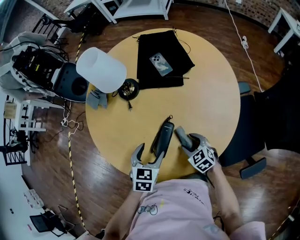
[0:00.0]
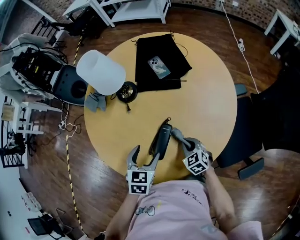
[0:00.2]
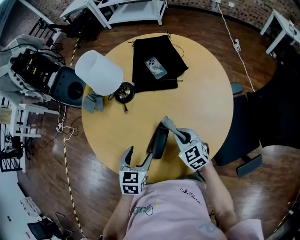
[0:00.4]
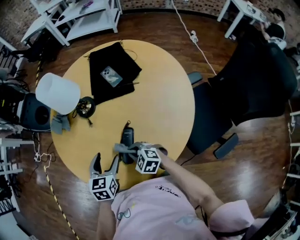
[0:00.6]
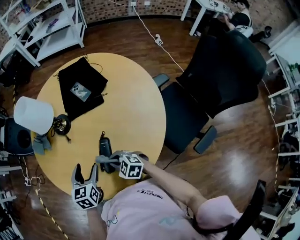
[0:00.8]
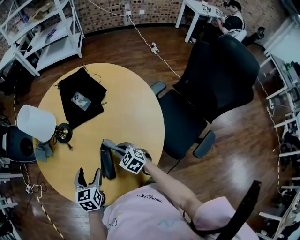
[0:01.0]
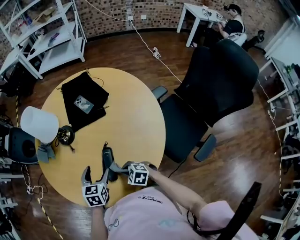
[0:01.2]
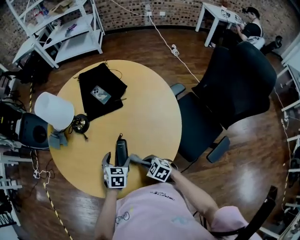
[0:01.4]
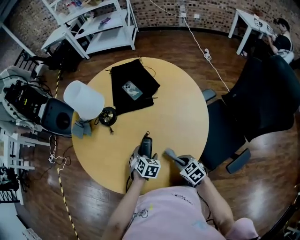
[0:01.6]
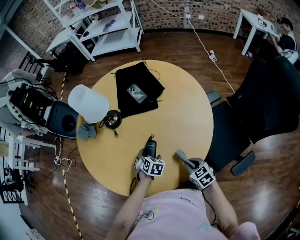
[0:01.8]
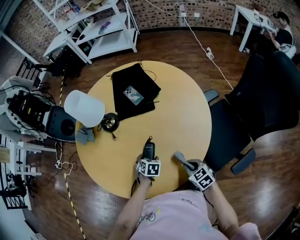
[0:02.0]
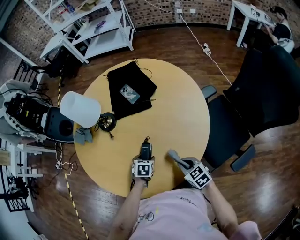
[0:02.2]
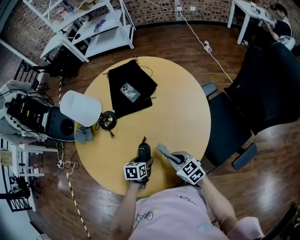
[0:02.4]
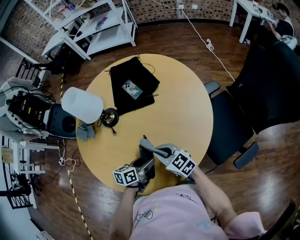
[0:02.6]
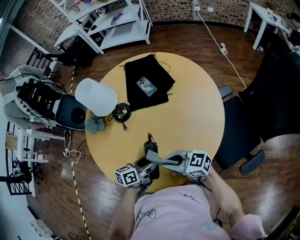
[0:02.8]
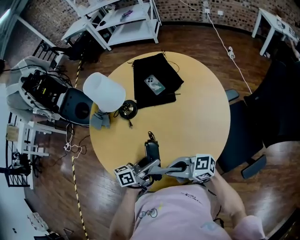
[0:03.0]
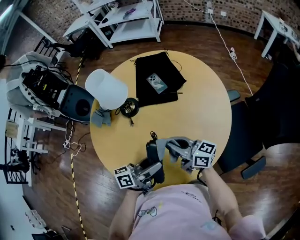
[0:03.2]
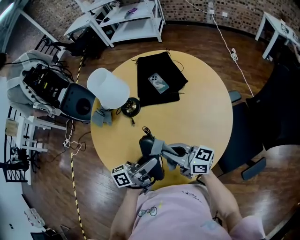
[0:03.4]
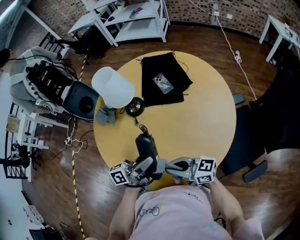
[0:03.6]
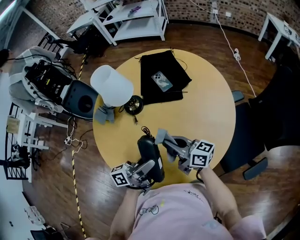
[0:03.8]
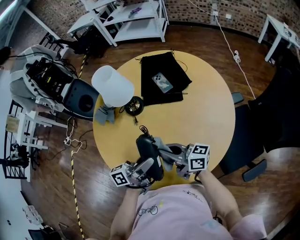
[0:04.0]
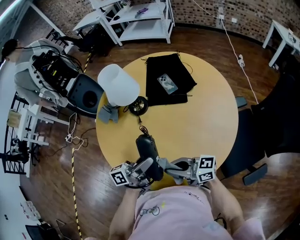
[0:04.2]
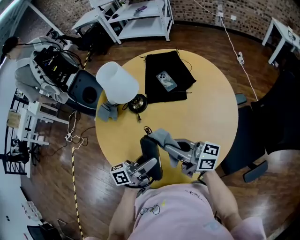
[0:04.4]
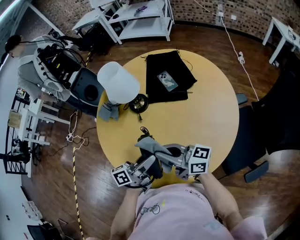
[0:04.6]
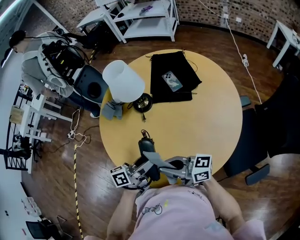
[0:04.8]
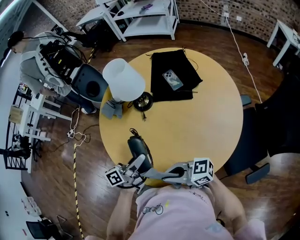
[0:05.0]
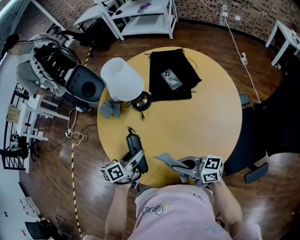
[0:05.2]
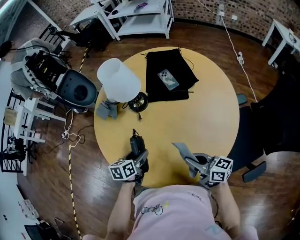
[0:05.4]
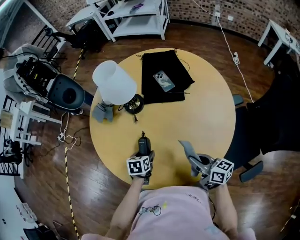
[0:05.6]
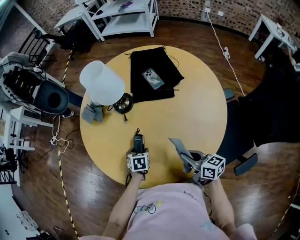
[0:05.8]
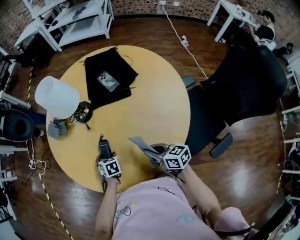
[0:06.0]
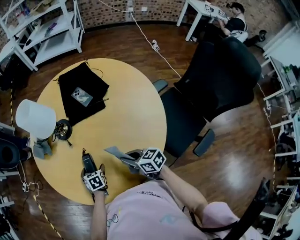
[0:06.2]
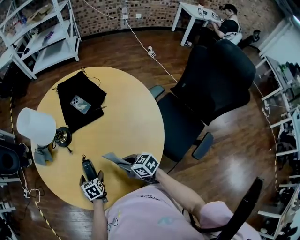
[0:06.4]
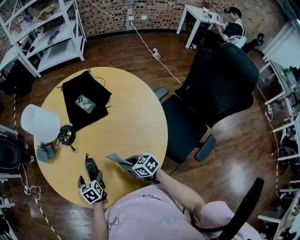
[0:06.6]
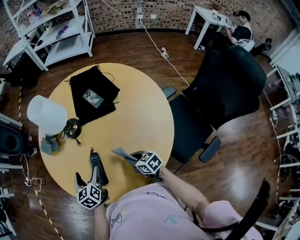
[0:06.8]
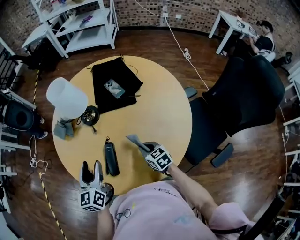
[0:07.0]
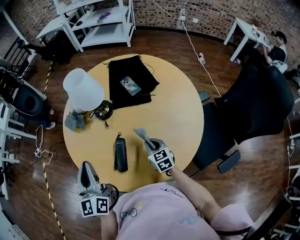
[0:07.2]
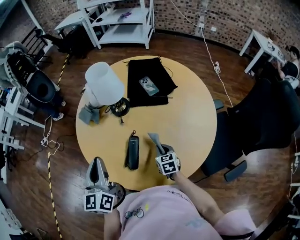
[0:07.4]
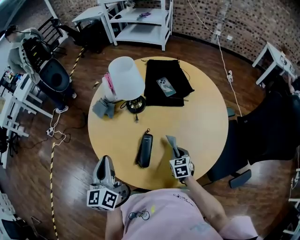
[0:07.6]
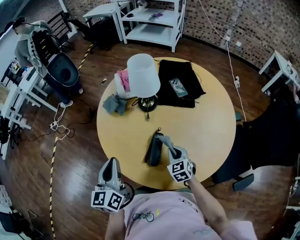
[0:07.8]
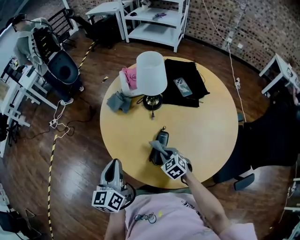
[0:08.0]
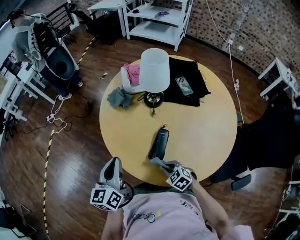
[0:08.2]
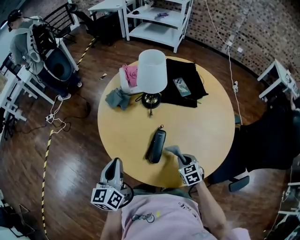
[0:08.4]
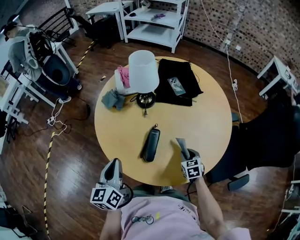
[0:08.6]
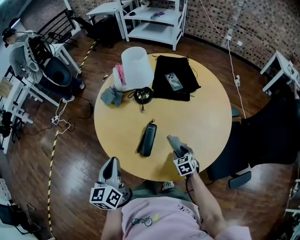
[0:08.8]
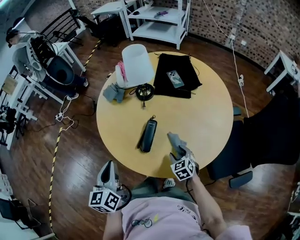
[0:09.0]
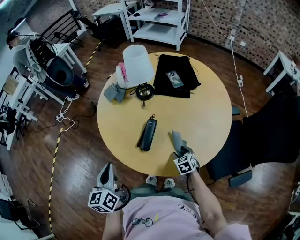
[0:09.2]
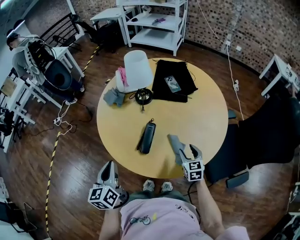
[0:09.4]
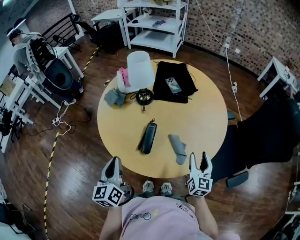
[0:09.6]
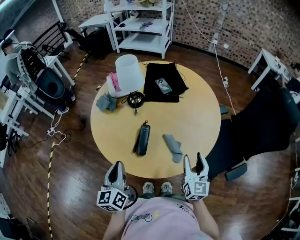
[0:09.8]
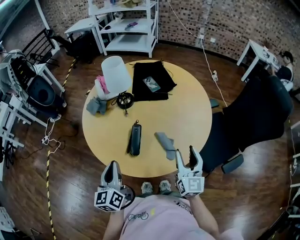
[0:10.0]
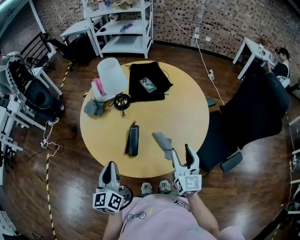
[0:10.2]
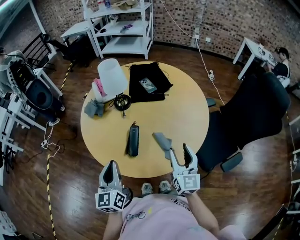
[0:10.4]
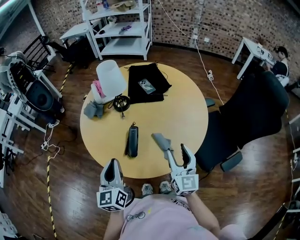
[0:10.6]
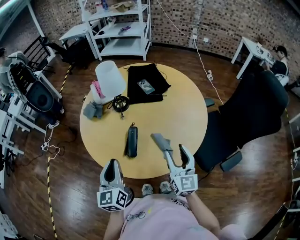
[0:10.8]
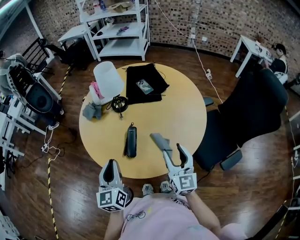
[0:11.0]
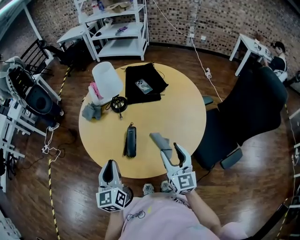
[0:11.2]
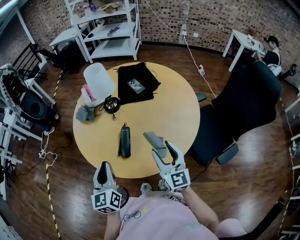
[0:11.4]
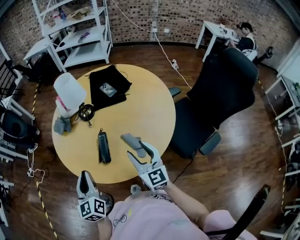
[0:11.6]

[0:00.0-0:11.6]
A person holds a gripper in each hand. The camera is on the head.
0:00.0 to 0:01.4: The right gripper goes left and right, some 15 cm each way, reversing 2 times, and closes up.
0:01.4 to 0:02.8: The right gripper goes approximately 15 cm upward, and angles its fingers upward, by some 40 degrees; the left gripper goes downward and returns, roughly 10 cm each way, and changes its angle by approximately 60 degrees.
0:02.8 to 0:04.4: The left gripper moves approximately 15 cm, and swivels about 30 degrees, while the right gripper changes place by about 10 cm, and rotates some 30 degrees.
0:04.4 to 0:05.8: The right gripper moves downward, some 15 cm, and angles its fingers downward, by some 30 degrees. The left gripper moves downward, roughly 25 cm, and tilts its fingers approximately 70 degrees downward.
0:05.8 to 0:07.2: The left gripper heads upward, covering about 35 cm, points its fingers about 60 degrees further upward, and closes up. The right gripper goes approximately 10 cm forward, and swivels about 40 degrees.
0:07.2 to 0:08.8: The left gripper heads backward, to the left and downward, covering approximately 15 cm; the right gripper shifts approximately 10 cm backward and downward, reaches roughly 20 cm to the left, then returns, swivels approximately 20 degrees, and opens its fingers.
0:08.8 to 0:10.2: The left gripper ends up roughly 5 cm from where it was. Meanwhile the right gripper heads upward, covering approximately 25 cm, and tilts its fingers about 50 degrees upward.
0:10.2 to 0:11.6: The grippers move only a little.

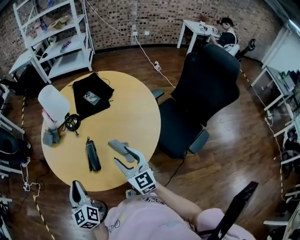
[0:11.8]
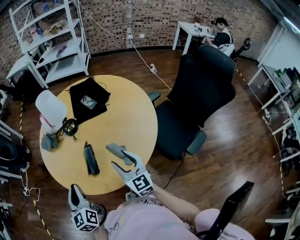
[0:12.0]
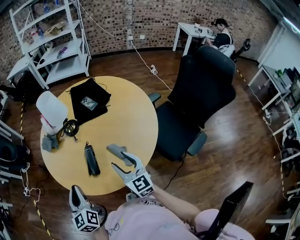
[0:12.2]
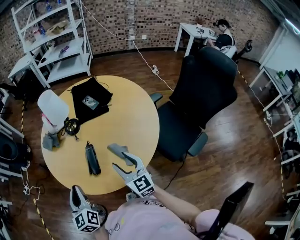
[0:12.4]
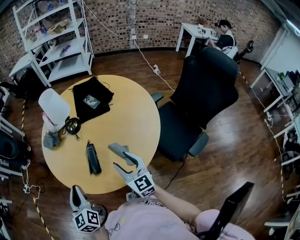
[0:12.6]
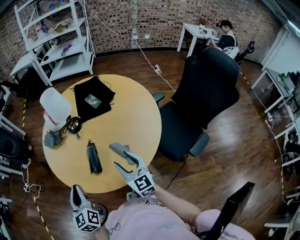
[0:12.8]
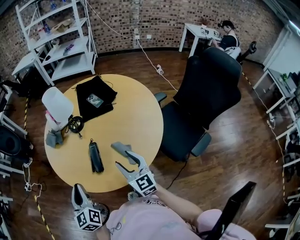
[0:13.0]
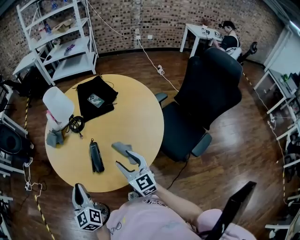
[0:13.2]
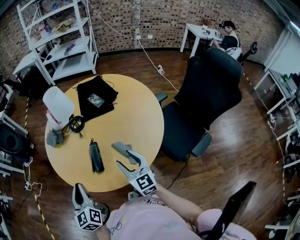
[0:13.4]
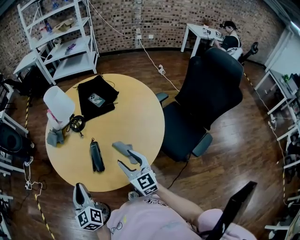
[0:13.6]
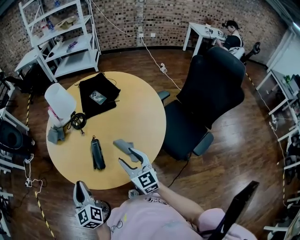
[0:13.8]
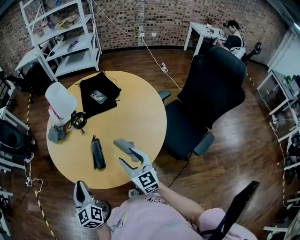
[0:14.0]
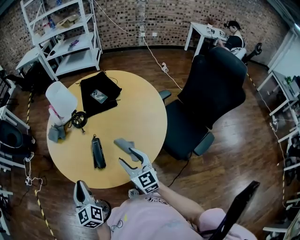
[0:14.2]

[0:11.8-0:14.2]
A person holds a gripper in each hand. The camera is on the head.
0:11.8 to 0:13.0: There are only small adjustments of the grippers.
0:13.0 to 0:14.2: The two grippers keep their place.

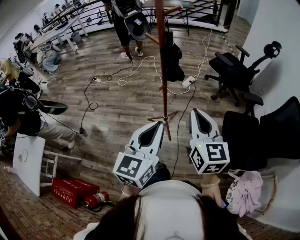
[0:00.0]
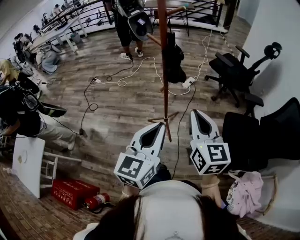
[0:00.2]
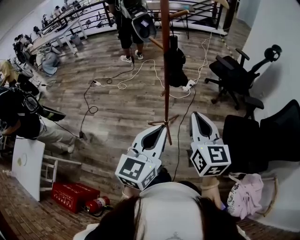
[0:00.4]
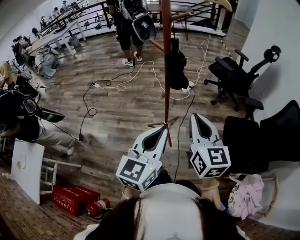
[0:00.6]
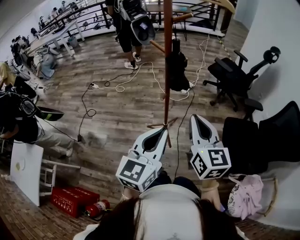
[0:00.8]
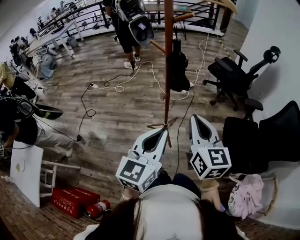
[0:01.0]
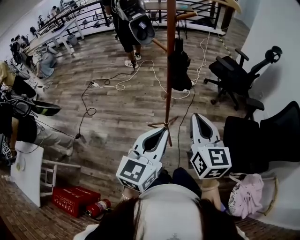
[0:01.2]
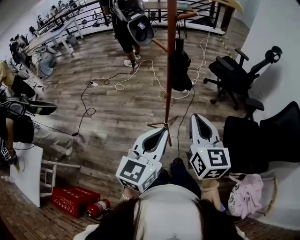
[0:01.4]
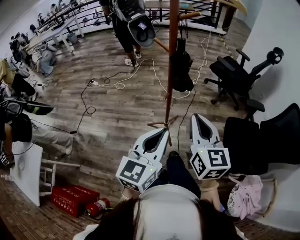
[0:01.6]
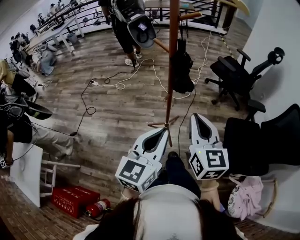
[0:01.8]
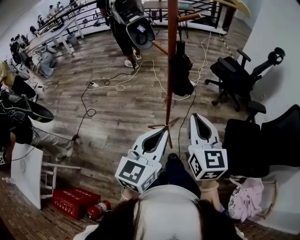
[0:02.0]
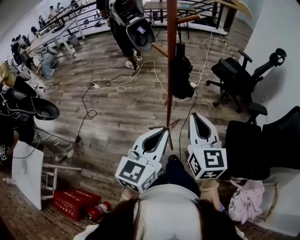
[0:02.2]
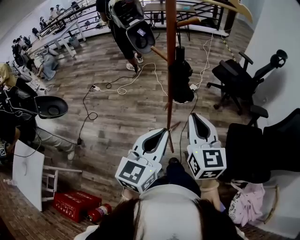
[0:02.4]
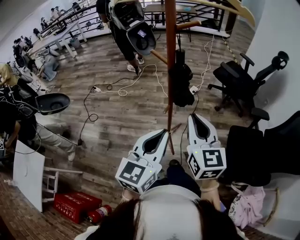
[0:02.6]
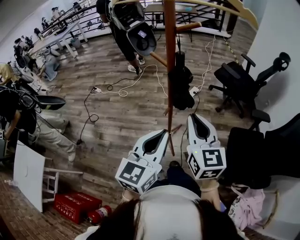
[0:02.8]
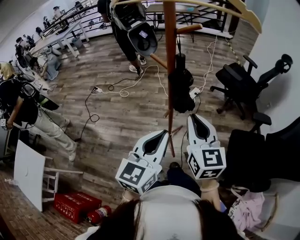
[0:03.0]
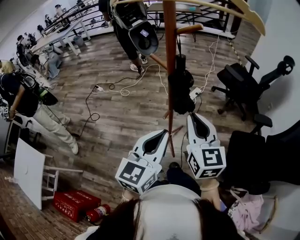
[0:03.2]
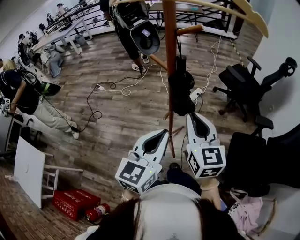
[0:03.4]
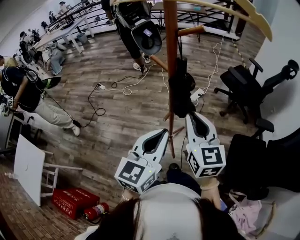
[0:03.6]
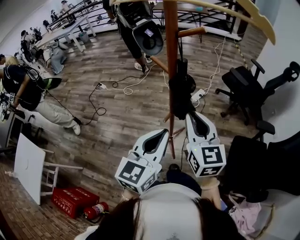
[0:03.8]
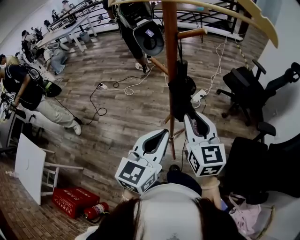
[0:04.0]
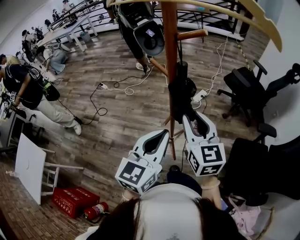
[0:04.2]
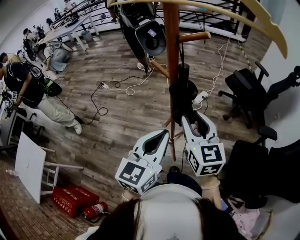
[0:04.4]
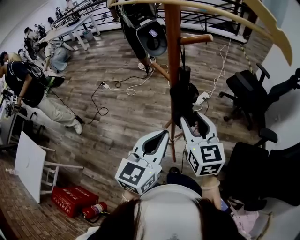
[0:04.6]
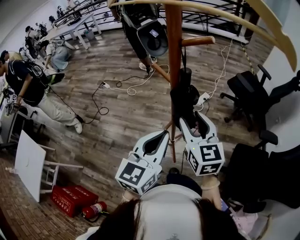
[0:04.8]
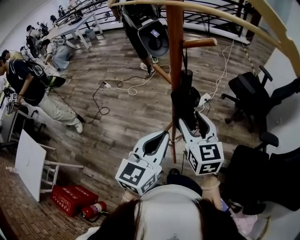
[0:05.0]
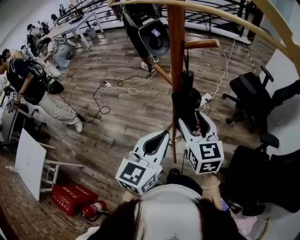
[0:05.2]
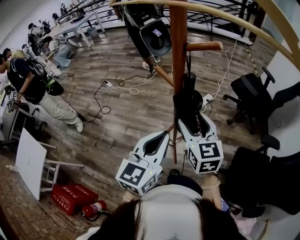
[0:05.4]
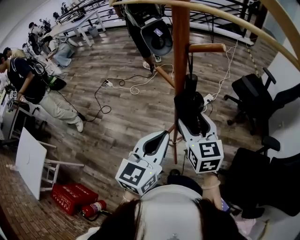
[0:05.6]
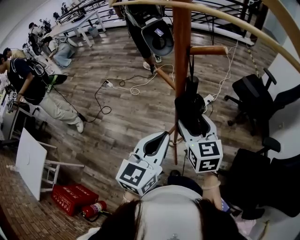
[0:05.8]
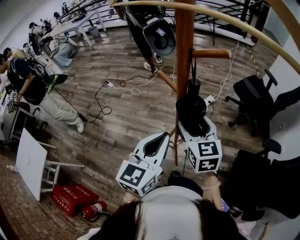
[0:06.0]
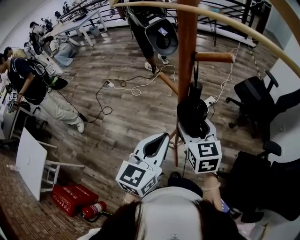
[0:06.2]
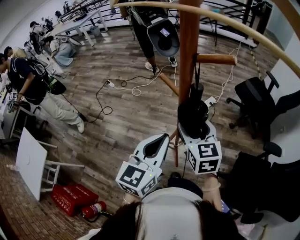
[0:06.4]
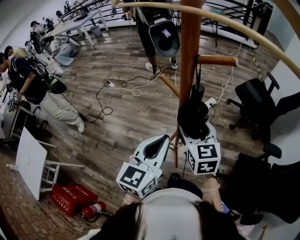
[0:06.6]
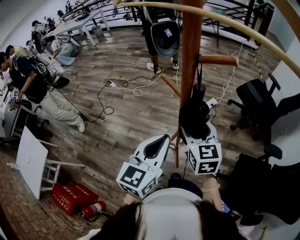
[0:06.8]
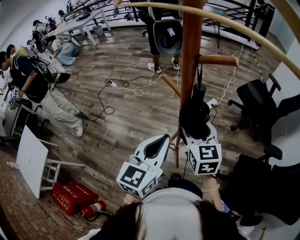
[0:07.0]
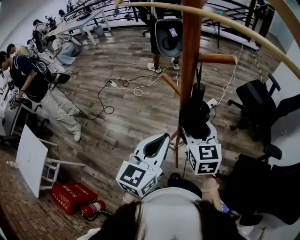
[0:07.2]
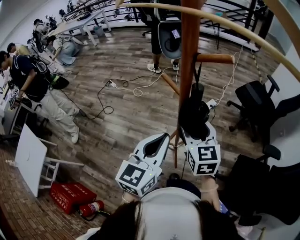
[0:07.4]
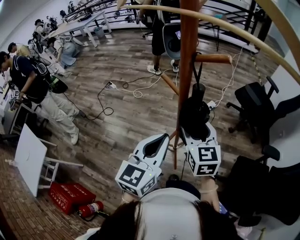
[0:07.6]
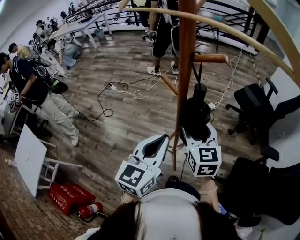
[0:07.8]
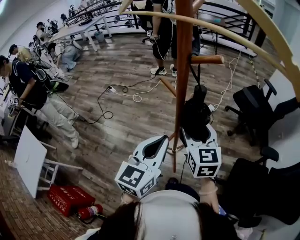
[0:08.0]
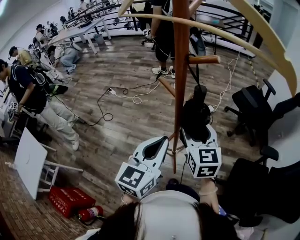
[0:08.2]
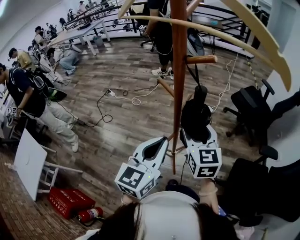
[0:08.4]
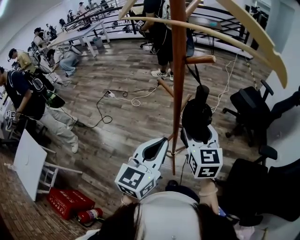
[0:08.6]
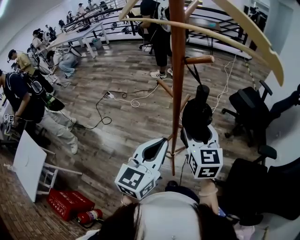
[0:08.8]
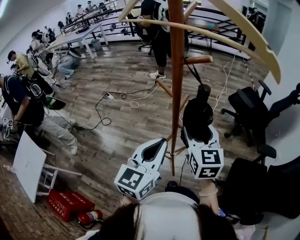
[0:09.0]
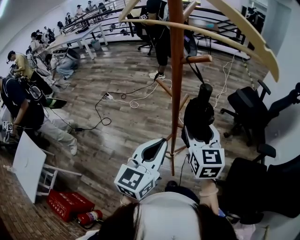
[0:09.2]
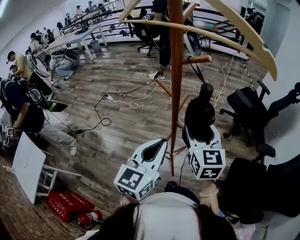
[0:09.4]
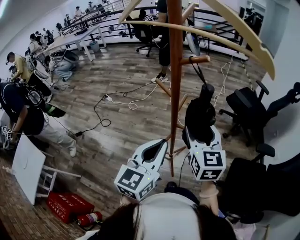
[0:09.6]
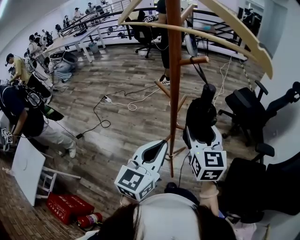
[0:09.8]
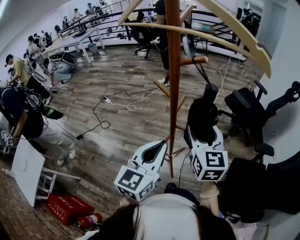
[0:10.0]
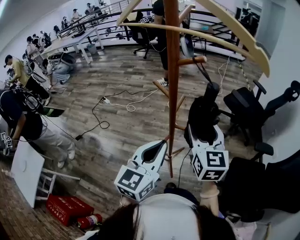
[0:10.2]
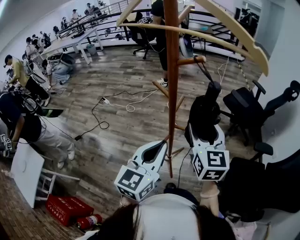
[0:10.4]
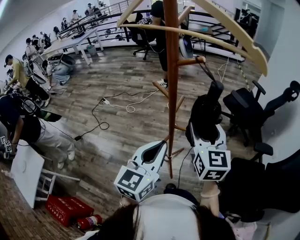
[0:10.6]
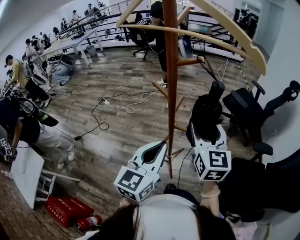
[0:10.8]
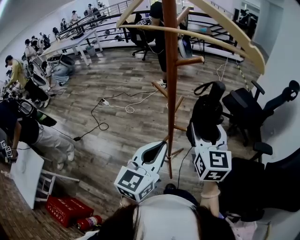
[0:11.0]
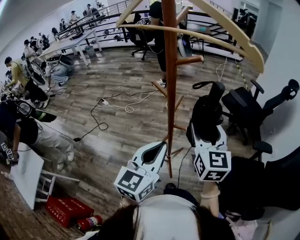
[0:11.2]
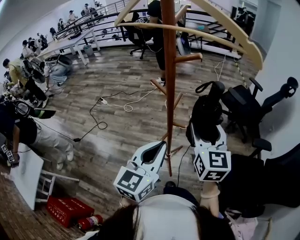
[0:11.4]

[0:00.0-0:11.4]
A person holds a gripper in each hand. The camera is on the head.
0:00.0 to 0:01.4: The left gripper shifts by approximately 5 cm. Meanwhile the right gripper shifts by about 5 cm.
0:01.4 to 0:02.8: The grippers both shift forward by roughly 10 cm.
0:02.8 to 0:04.2: The grippers both shift forward by approximately 5 cm.
0:04.2 to 0:05.6: Both grippers move forward, some 5 cm. The right gripper opens its fingers.
0:05.6 to 0:07.2: The grippers stay close to where they were, moving slightly.
0:07.2 to 0:08.6: The right gripper shifts by about 5 cm.
0:08.6 to 0:10.0: The right gripper ends up roughly 5 cm from where it was.
0:10.0 to 0:11.4: The grippers move only a little.
